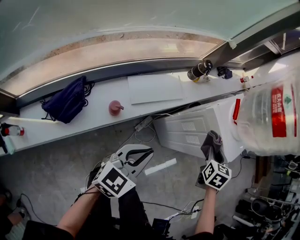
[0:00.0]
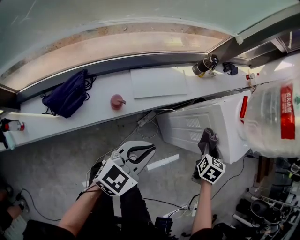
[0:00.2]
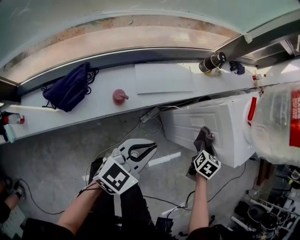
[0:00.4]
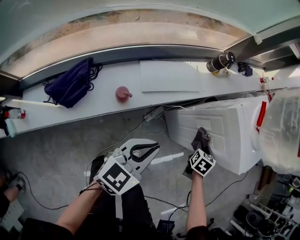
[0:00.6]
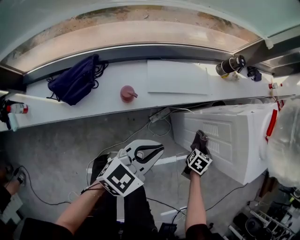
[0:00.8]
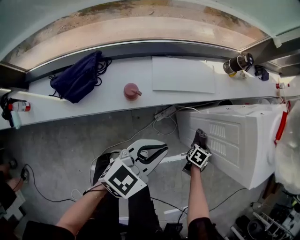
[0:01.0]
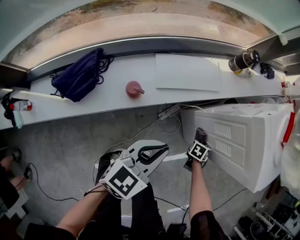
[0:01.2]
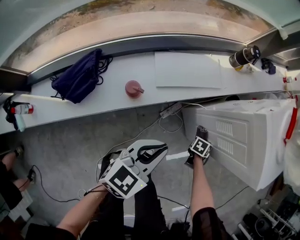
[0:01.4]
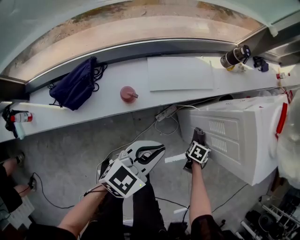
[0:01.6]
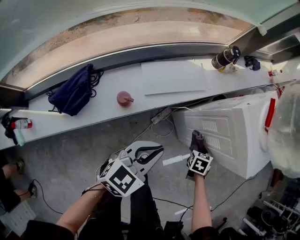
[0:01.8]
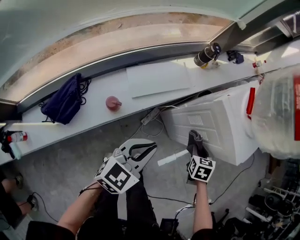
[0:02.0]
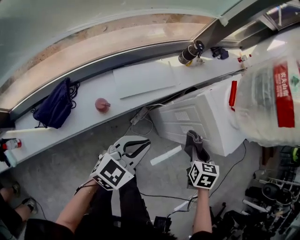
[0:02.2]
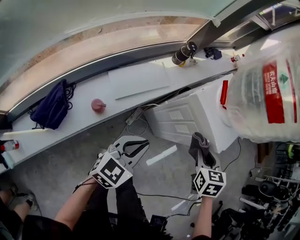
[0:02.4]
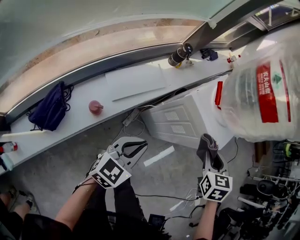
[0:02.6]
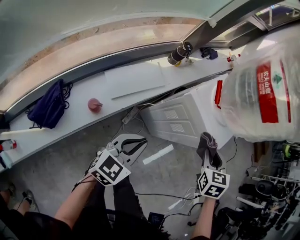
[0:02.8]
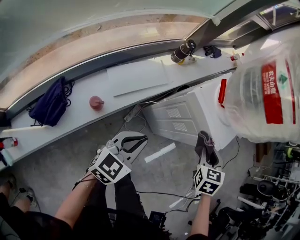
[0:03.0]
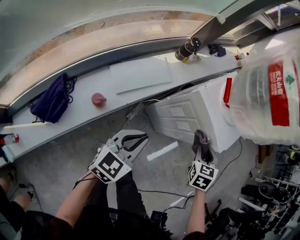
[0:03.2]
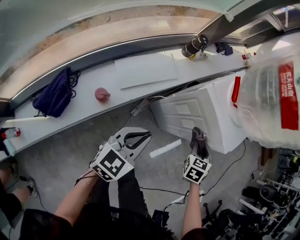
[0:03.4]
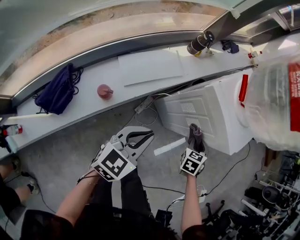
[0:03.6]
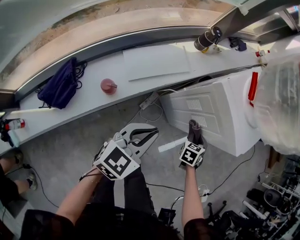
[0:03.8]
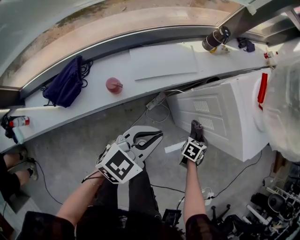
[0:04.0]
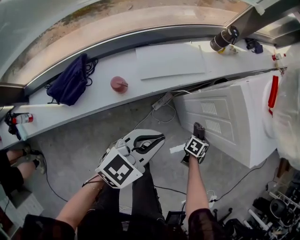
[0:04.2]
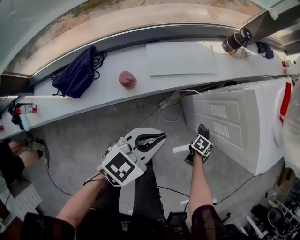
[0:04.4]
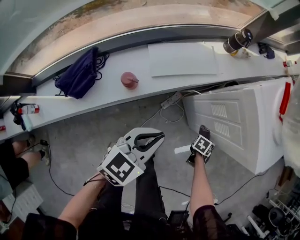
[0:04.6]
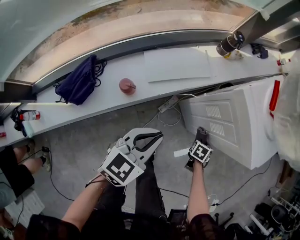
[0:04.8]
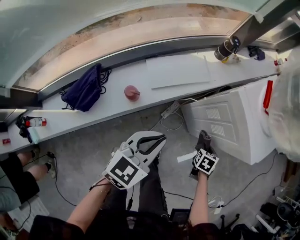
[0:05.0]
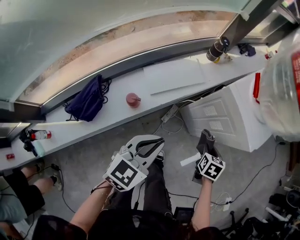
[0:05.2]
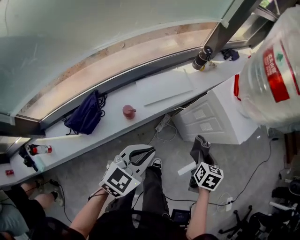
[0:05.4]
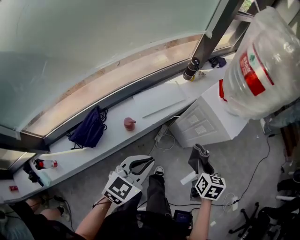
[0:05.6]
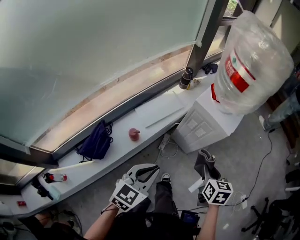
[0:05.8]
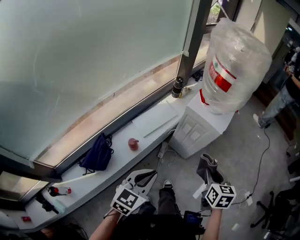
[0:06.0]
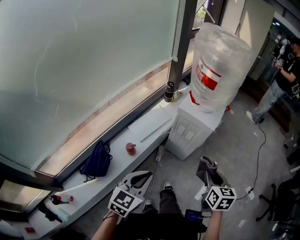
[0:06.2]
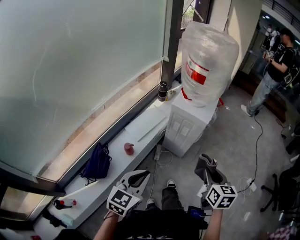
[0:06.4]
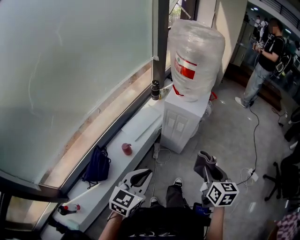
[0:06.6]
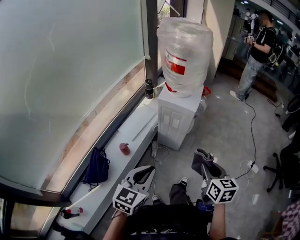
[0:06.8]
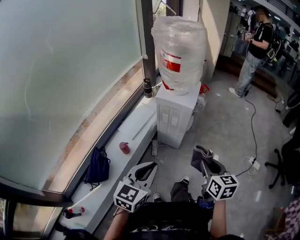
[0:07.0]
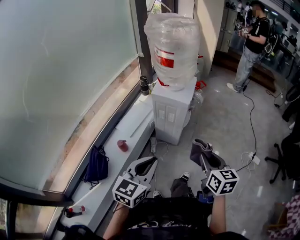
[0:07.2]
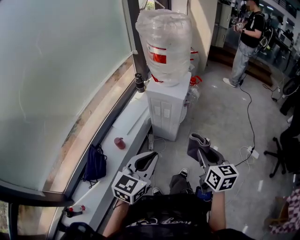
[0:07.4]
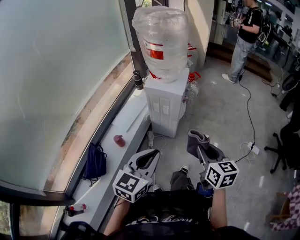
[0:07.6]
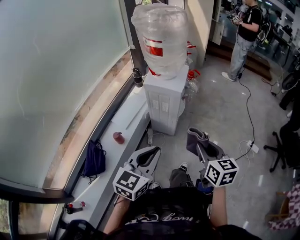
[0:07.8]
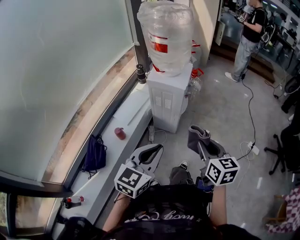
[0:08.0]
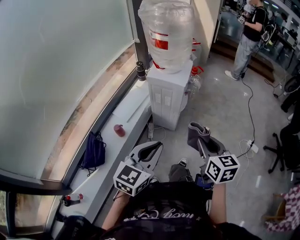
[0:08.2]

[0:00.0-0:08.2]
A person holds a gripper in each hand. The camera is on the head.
0:00.0 to 0:01.6: The left gripper is displaced downward by roughly 10 cm. The right gripper goes about 35 cm downward, and rotates some 30 degrees.
0:01.6 to 0:03.2: The left gripper heads upward, covering approximately 10 cm. Meanwhile the right gripper travels upward by about 30 cm, and turns by roughly 20 degrees.
0:03.2 to 0:05.0: The right gripper shifts roughly 20 cm downward, and swivels about 20 degrees. The left gripper travels downward and back again, some 10 cm each way.
0:05.0 to 0:06.6: The left gripper moves backward and upward, about 35 cm, and changes its angle by about 20 degrees. The right gripper is displaced upward and backward by approximately 50 cm, and tilts its fingers about 30 degrees upward.
0:06.6 to 0:08.2: The right gripper ends up about 5 cm from where it was, while the left gripper moves to the right, about 10 cm.

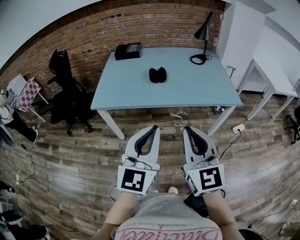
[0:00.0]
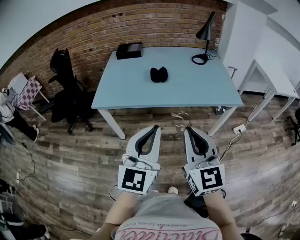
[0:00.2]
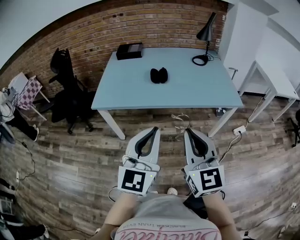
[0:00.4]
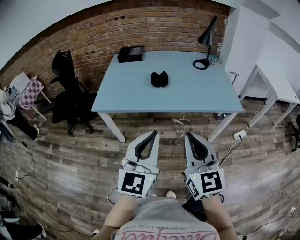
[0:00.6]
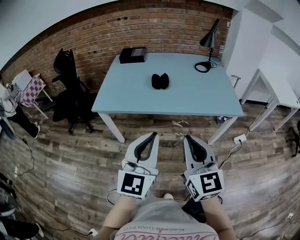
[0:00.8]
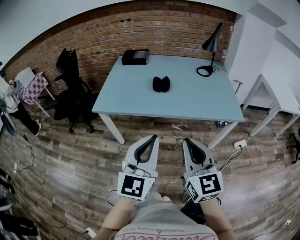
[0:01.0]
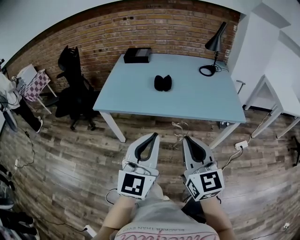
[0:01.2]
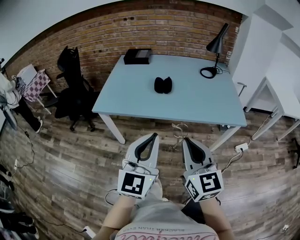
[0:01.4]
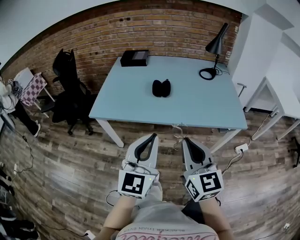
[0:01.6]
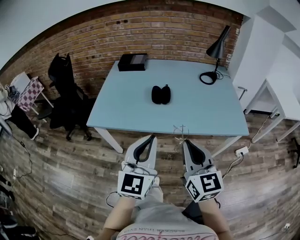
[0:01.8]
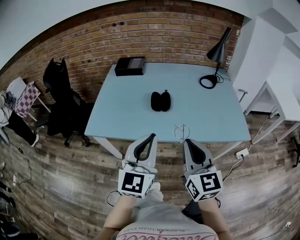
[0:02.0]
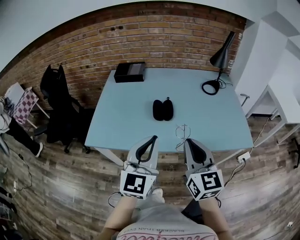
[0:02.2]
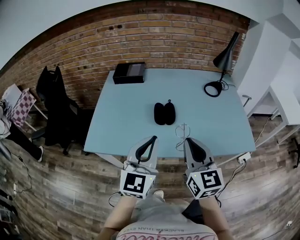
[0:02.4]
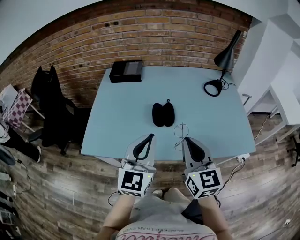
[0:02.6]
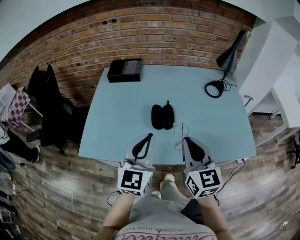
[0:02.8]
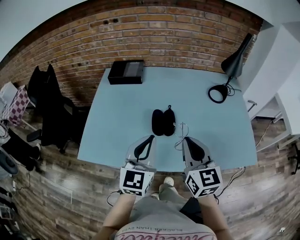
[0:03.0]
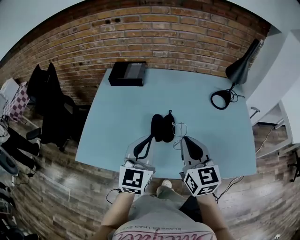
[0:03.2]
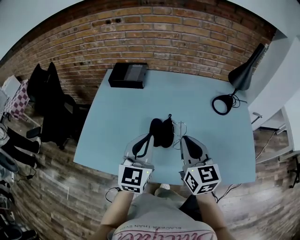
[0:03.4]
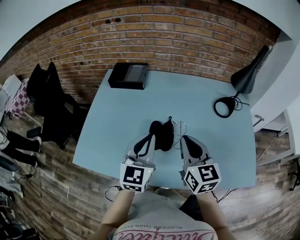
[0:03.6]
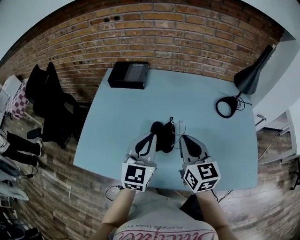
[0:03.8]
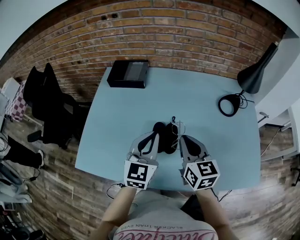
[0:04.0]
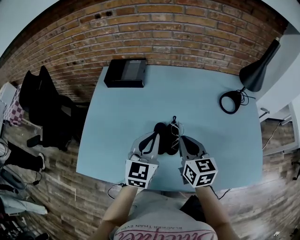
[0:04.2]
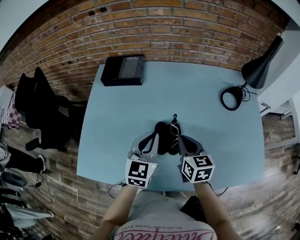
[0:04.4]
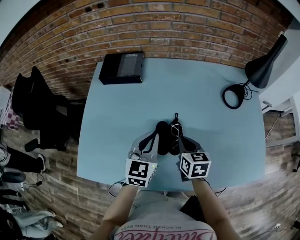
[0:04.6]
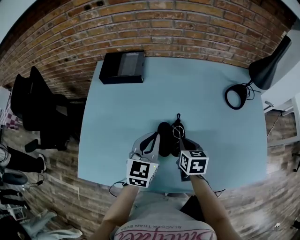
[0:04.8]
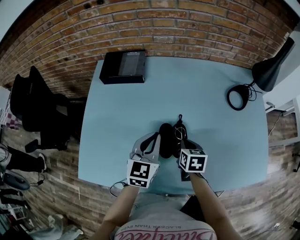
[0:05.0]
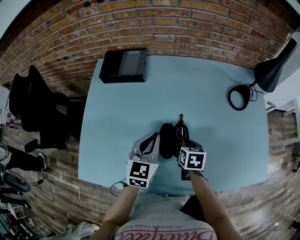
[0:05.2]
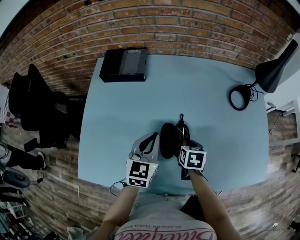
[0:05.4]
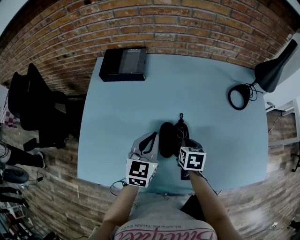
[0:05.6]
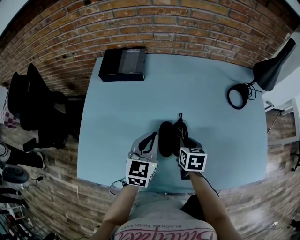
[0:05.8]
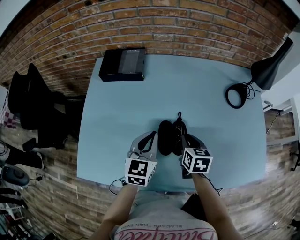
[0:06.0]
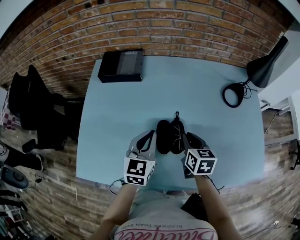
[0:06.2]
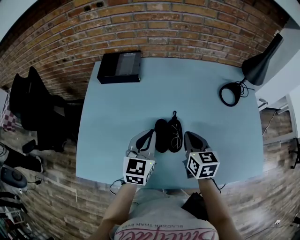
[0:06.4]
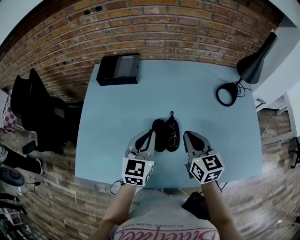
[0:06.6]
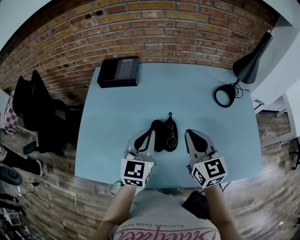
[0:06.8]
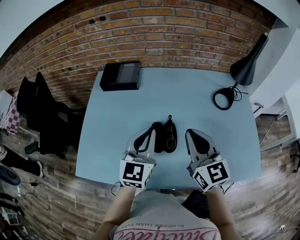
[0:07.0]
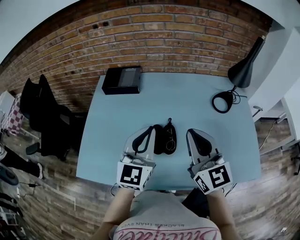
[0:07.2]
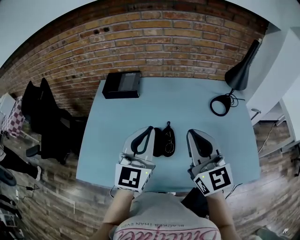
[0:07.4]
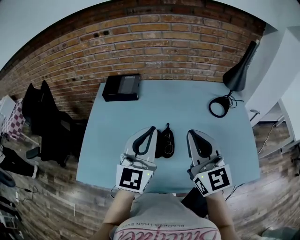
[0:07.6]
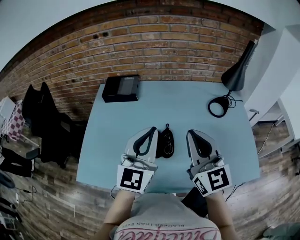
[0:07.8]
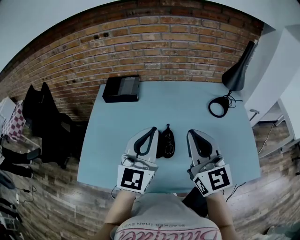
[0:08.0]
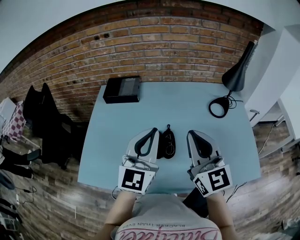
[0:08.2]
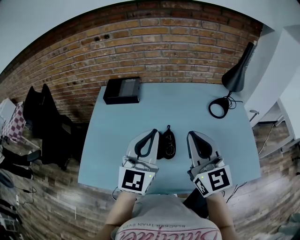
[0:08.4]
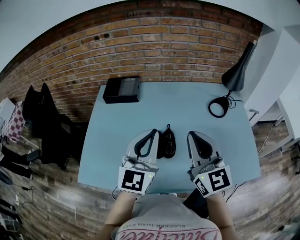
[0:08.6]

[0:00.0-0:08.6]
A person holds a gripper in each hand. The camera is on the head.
0:00.0 to 0:01.4: Both grippers travel together forward, approximately 5 cm.
0:01.4 to 0:02.8: Both grippers travel together forward, approximately 35 cm.
0:02.8 to 0:04.4: Both grippers travel together forward and downward, about 25 cm. The right gripper swivels some 30 degrees.
0:04.4 to 0:05.8: The left gripper travels downward by about 5 cm; the right gripper is displaced downward by approximately 10 cm, and turns by some 20 degrees.
0:05.8 to 0:07.2: The right gripper travels upward by approximately 30 cm, and angles its fingers upward, by some 50 degrees, while the left gripper travels upward and backward by approximately 15 cm, and turns by some 20 degrees.
0:07.2 to 0:08.6: The left gripper ends up about 5 cm from where it was.

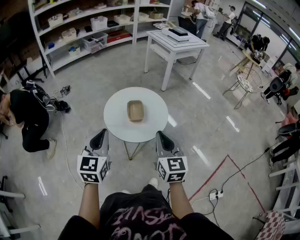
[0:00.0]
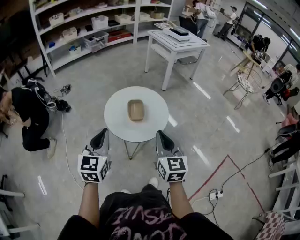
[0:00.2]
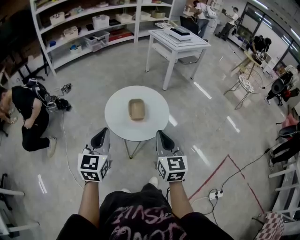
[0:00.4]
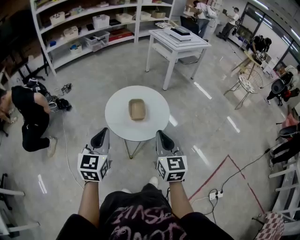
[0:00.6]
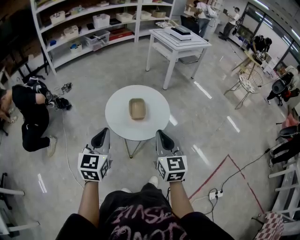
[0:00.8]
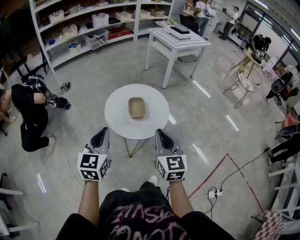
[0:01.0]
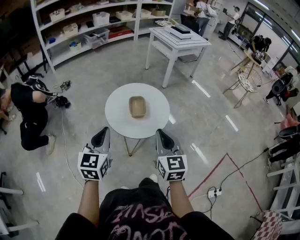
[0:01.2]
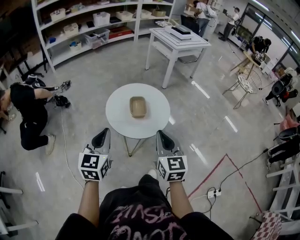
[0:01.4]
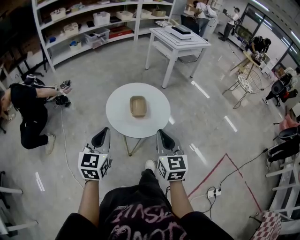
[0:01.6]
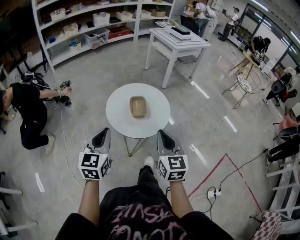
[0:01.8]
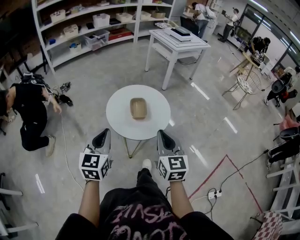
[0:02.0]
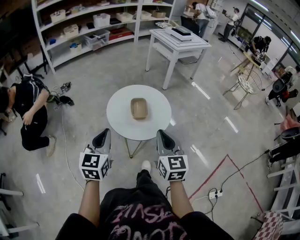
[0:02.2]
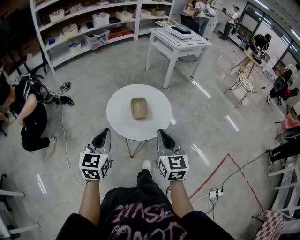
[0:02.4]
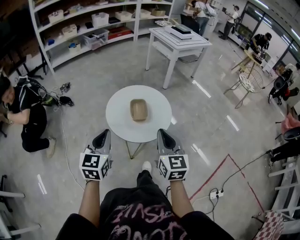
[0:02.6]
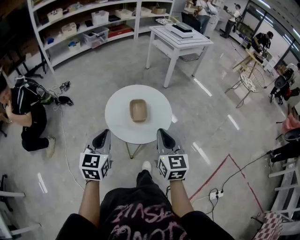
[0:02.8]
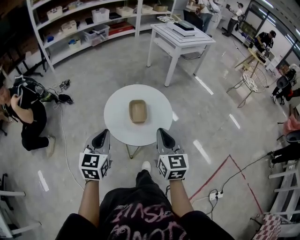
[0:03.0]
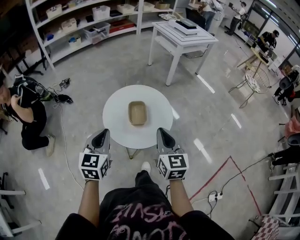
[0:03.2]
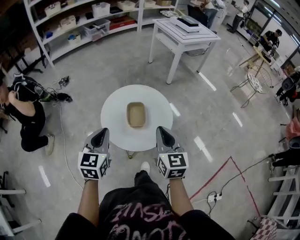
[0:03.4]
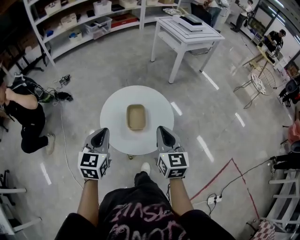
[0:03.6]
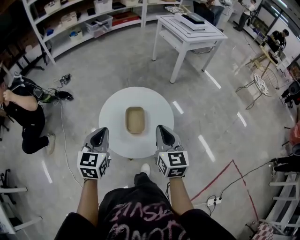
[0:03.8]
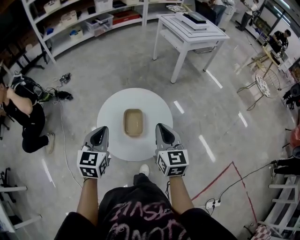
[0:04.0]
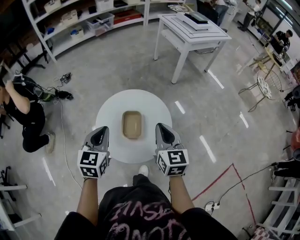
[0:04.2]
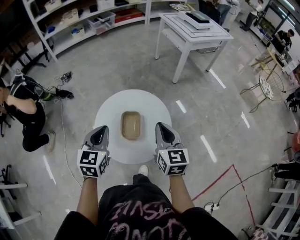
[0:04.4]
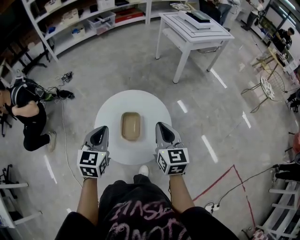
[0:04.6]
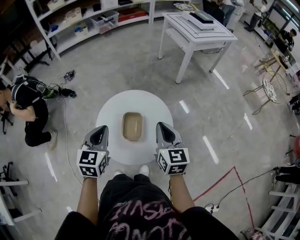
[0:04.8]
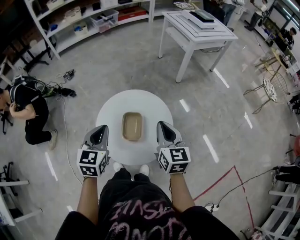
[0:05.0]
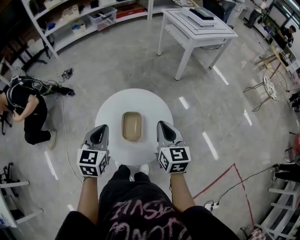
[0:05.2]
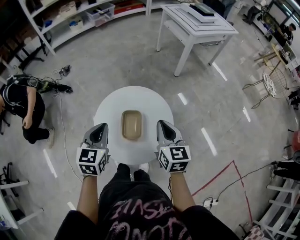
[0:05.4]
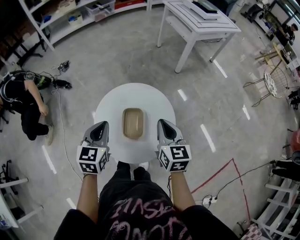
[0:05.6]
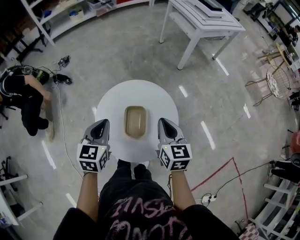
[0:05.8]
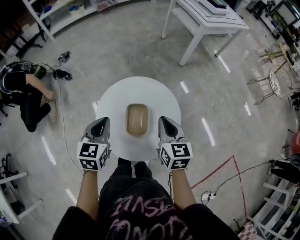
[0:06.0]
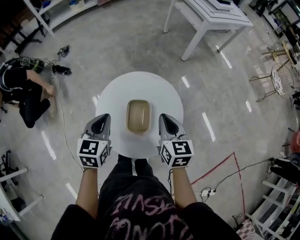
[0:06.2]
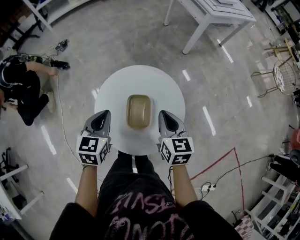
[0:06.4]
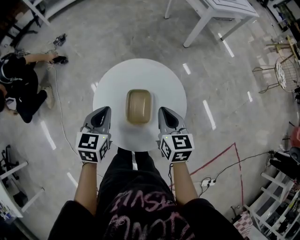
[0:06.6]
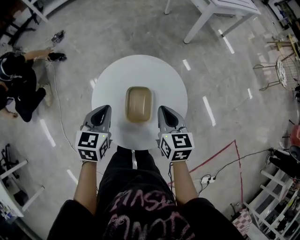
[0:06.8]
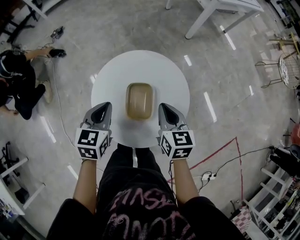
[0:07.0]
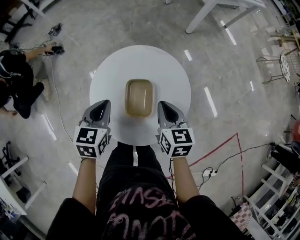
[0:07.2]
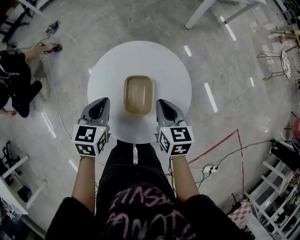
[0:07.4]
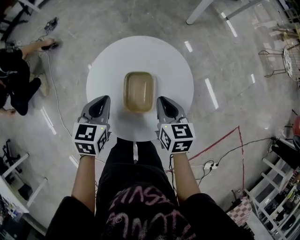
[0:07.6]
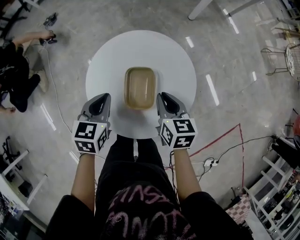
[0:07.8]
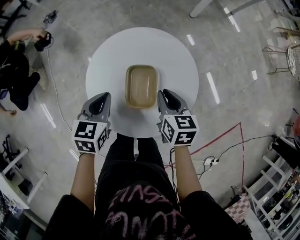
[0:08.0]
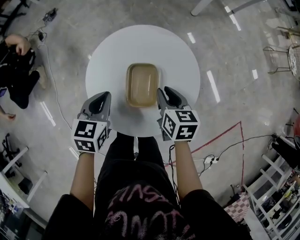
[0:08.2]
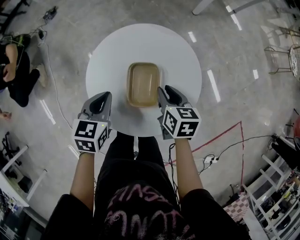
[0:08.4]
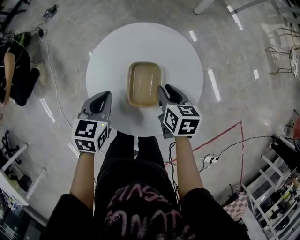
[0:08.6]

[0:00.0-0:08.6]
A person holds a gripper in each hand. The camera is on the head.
0:00.0 to 0:01.4: The grippers move only a little.
0:01.4 to 0:02.8: The two grippers go about 5 cm forward.
0:02.8 to 0:04.4: The grippers both shift forward by roughly 25 cm.
0:04.4 to 0:05.8: The left gripper heads forward, covering about 5 cm, while the right gripper travels forward and downward by about 10 cm.
0:05.8 to 0:07.2: Both grippers travel together downward, approximately 10 cm.
0:07.2 to 0:08.6: The grippers both shift downward by about 10 cm. The right gripper opens its fingers.
